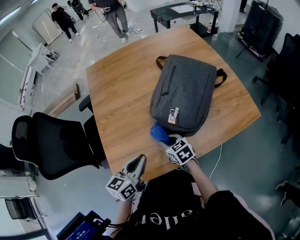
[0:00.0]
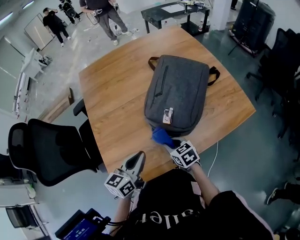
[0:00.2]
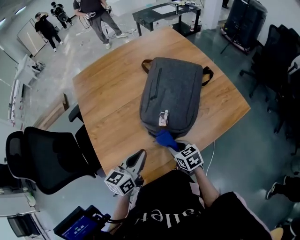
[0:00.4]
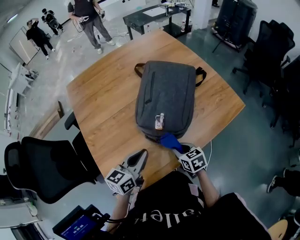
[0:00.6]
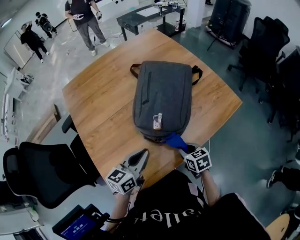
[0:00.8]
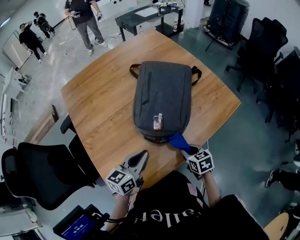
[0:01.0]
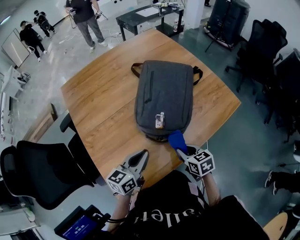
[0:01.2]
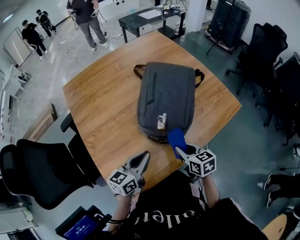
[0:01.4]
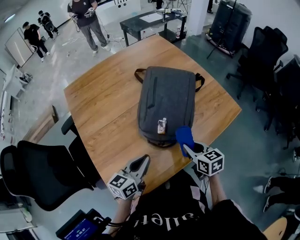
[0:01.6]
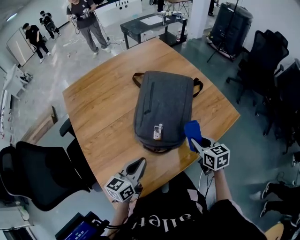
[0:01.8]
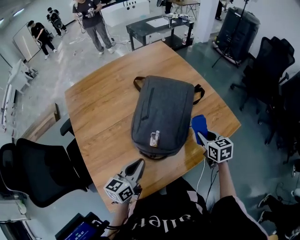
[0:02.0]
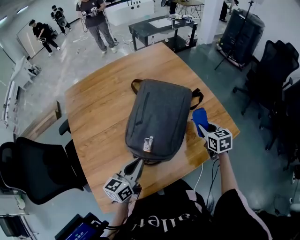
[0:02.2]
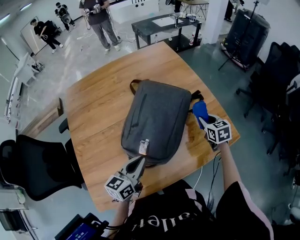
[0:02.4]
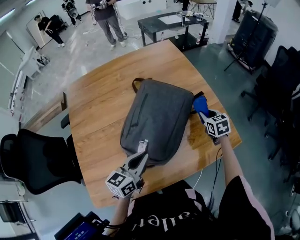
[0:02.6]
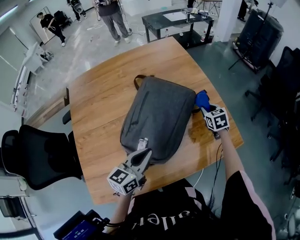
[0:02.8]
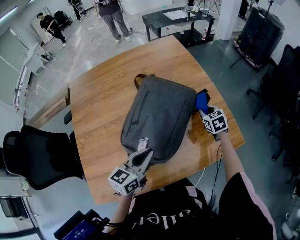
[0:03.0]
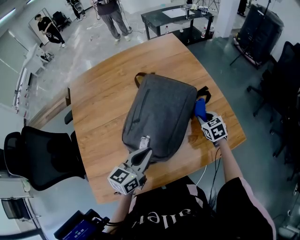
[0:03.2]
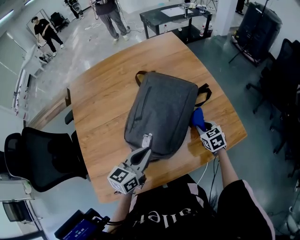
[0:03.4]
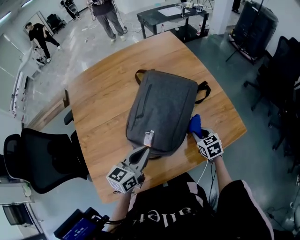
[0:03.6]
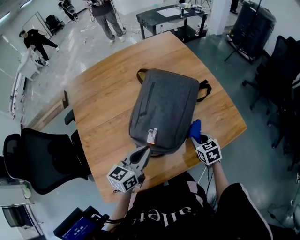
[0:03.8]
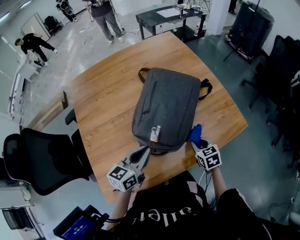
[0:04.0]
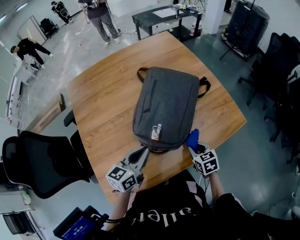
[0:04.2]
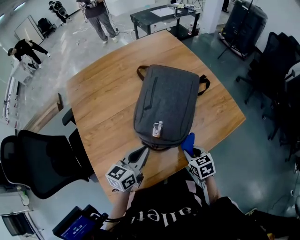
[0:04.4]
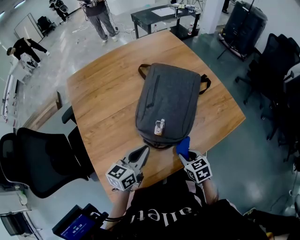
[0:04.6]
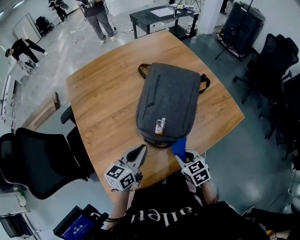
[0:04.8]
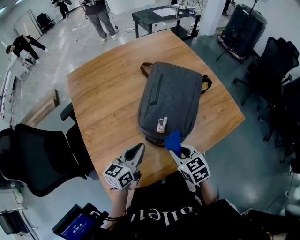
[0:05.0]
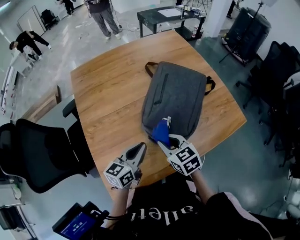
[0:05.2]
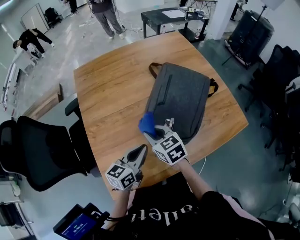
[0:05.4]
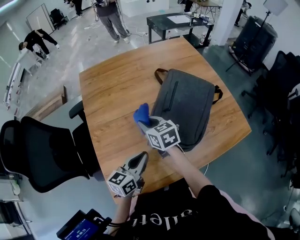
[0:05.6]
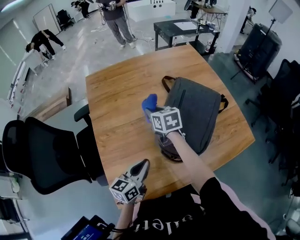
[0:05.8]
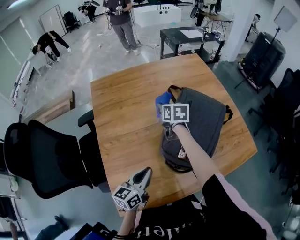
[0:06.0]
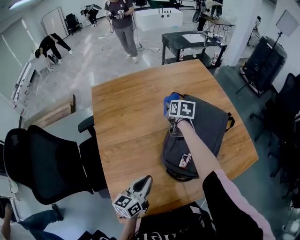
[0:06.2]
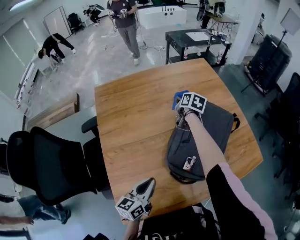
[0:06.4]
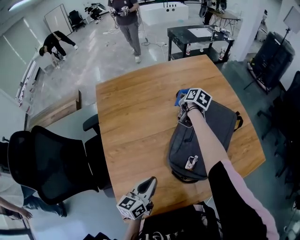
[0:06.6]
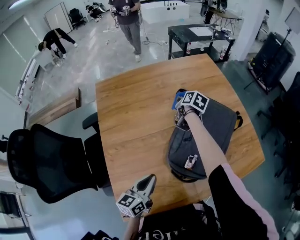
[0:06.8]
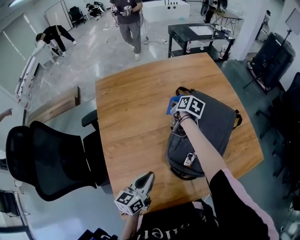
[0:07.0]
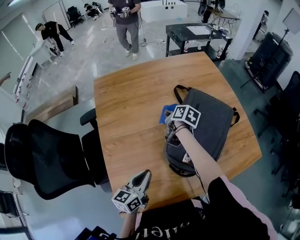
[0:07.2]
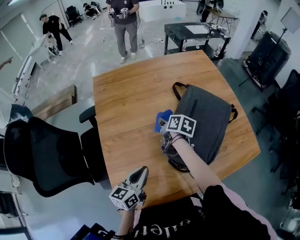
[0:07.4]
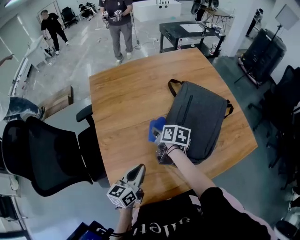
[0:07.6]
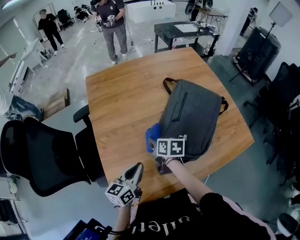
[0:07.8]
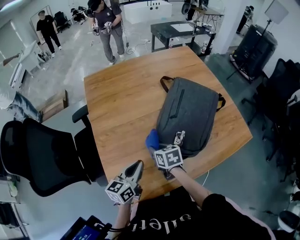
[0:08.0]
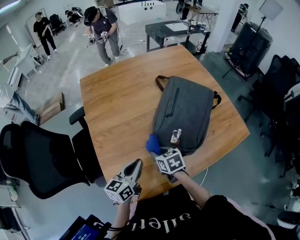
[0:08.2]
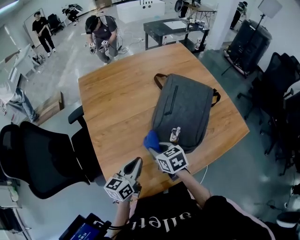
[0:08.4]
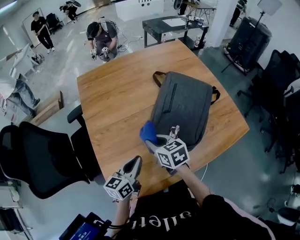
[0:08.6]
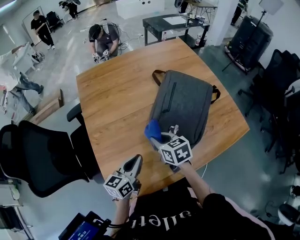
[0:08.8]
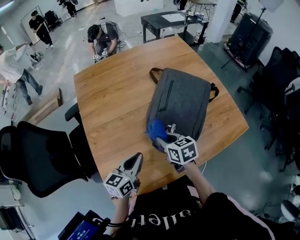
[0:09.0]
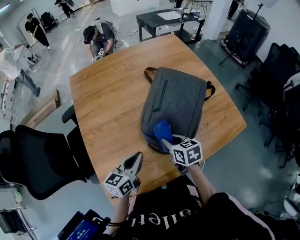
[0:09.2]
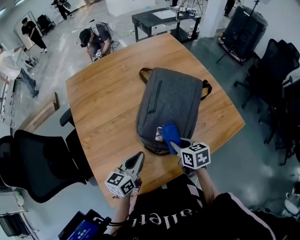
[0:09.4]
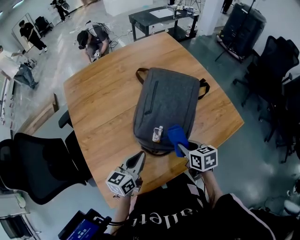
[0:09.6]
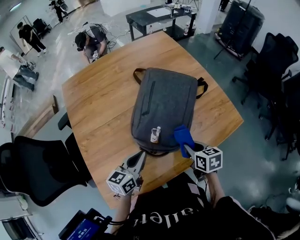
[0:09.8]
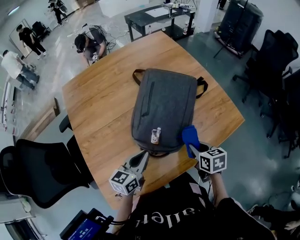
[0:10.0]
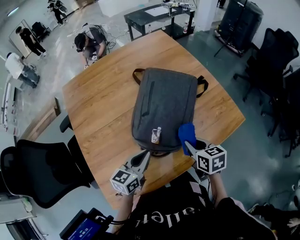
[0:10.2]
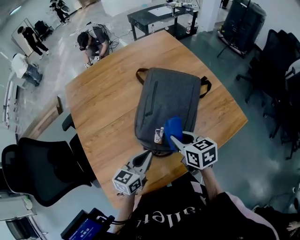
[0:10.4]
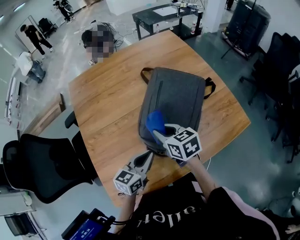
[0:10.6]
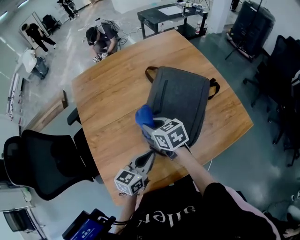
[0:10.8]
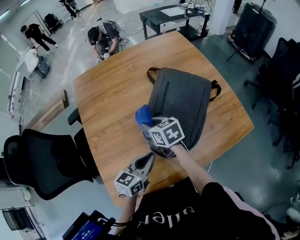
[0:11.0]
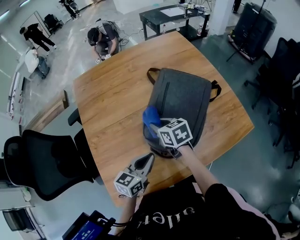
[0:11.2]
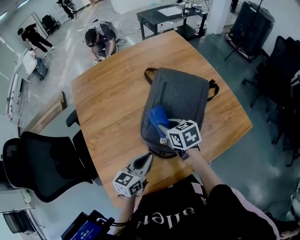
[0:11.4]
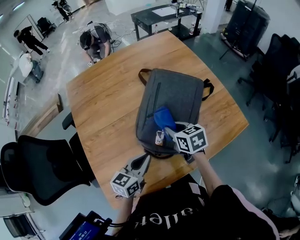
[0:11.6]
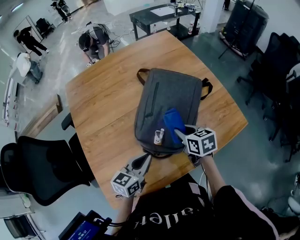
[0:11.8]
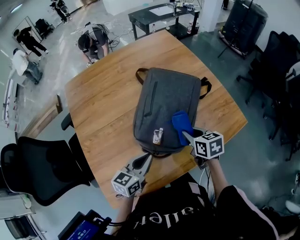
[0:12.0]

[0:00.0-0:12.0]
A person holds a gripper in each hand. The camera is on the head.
0:00.0 to 0:01.6: The right gripper swings left and right, approximately 15 cm each way, with 2 reversals, and rotates some 30 degrees. The left gripper is displaced forward by roughly 5 cm.
0:01.6 to 0:03.0: The right gripper shifts about 35 cm forward and to the right, and turns by approximately 30 degrees; the left gripper travels forward and to the right by about 20 cm.
0:03.0 to 0:04.4: The right gripper heads backward and to the left, covering roughly 35 cm. The left gripper is displaced to the left and backward by some 10 cm.
0:04.4 to 0:06.0: The right gripper heads forward and to the left, covering some 40 cm. The left gripper shifts roughly 10 cm to the left.
0:06.0 to 0:07.6: The right gripper heads backward and downward, covering some 15 cm, and turns by roughly 30 degrees.
0:07.6 to 0:09.0: The left gripper goes about 5 cm to the right; the right gripper moves backward and to the right, about 15 cm, and swivels roughly 30 degrees.
0:09.0 to 0:10.4: Both grippers travel together to the right, roughly 10 cm.
0:10.4 to 0:12.0: The right gripper reaches roughly 15 cm to the left, then returns.

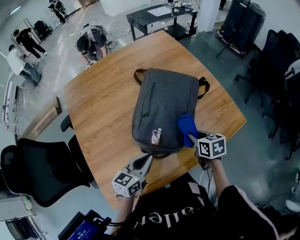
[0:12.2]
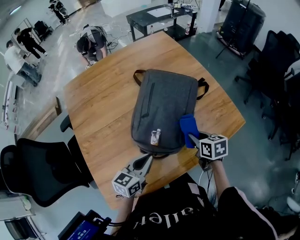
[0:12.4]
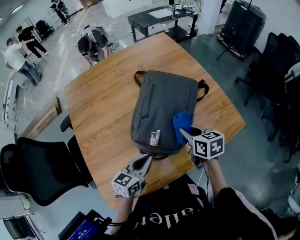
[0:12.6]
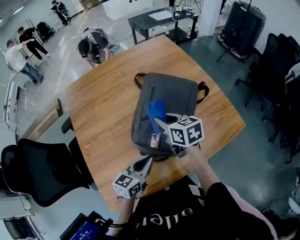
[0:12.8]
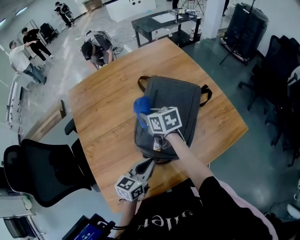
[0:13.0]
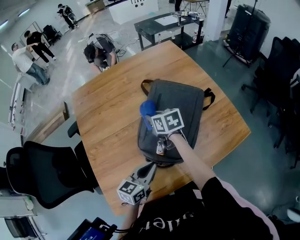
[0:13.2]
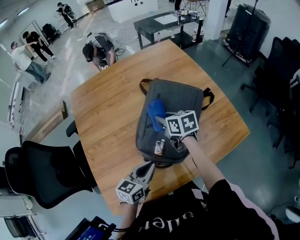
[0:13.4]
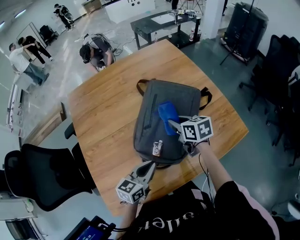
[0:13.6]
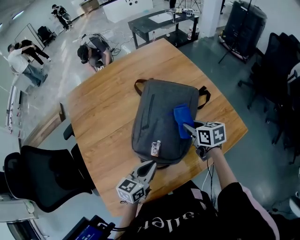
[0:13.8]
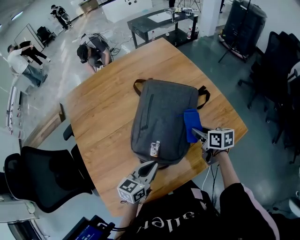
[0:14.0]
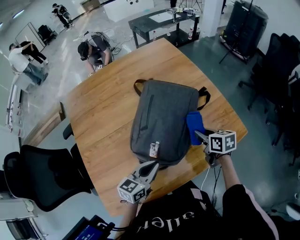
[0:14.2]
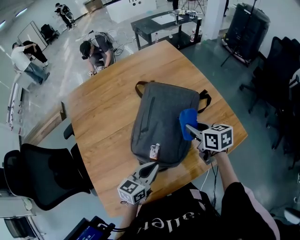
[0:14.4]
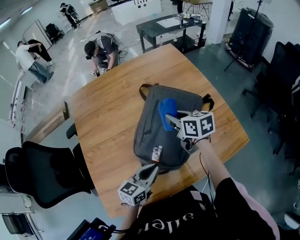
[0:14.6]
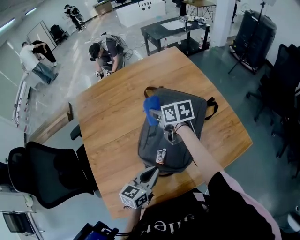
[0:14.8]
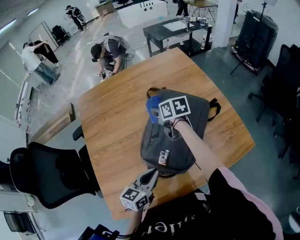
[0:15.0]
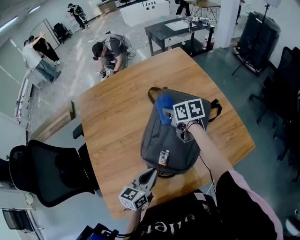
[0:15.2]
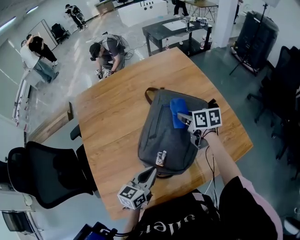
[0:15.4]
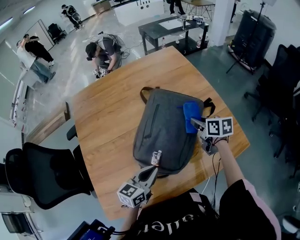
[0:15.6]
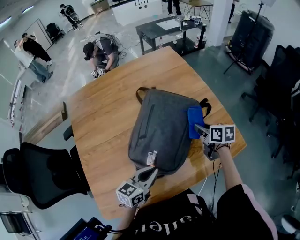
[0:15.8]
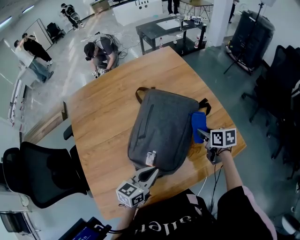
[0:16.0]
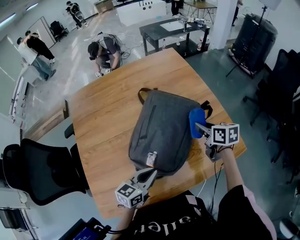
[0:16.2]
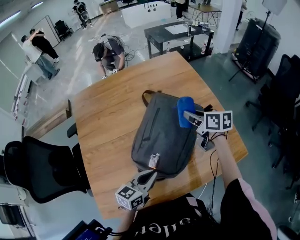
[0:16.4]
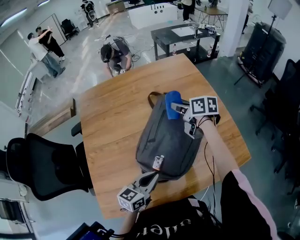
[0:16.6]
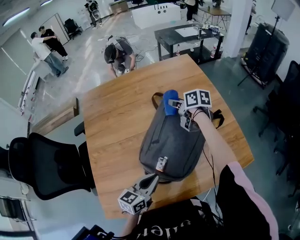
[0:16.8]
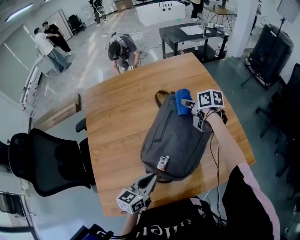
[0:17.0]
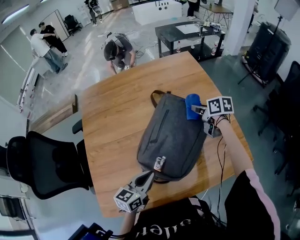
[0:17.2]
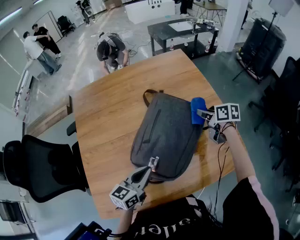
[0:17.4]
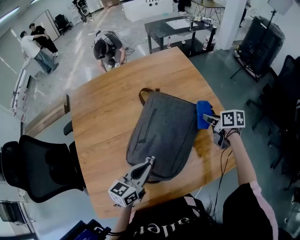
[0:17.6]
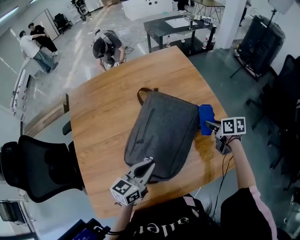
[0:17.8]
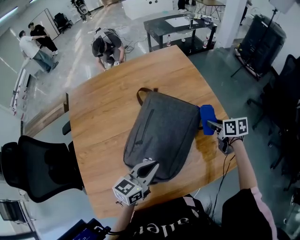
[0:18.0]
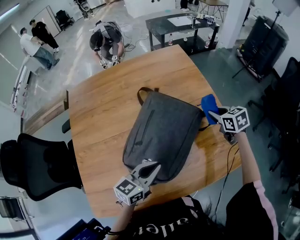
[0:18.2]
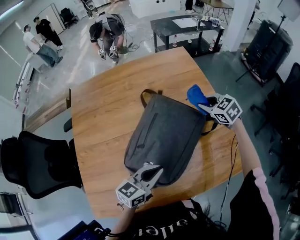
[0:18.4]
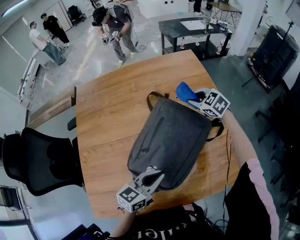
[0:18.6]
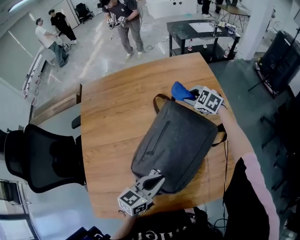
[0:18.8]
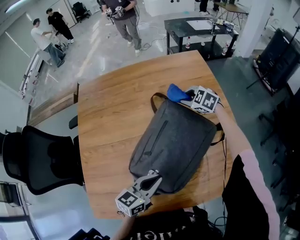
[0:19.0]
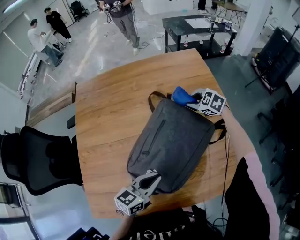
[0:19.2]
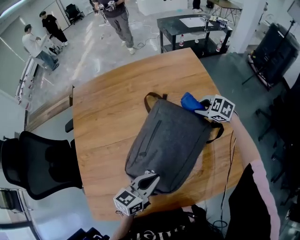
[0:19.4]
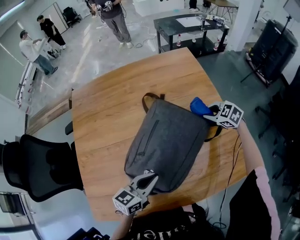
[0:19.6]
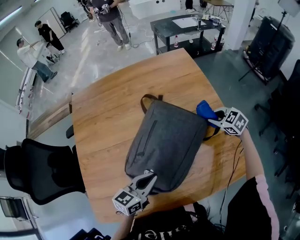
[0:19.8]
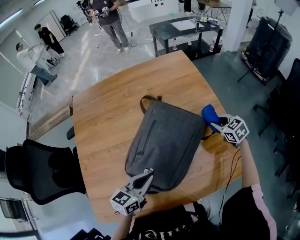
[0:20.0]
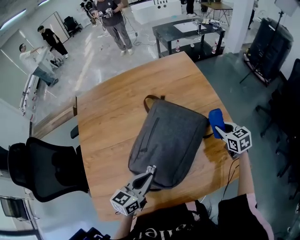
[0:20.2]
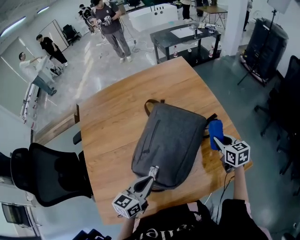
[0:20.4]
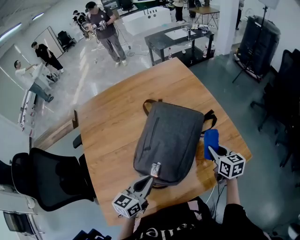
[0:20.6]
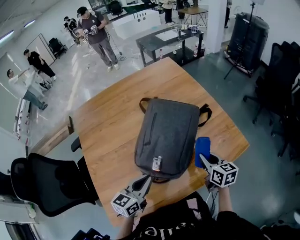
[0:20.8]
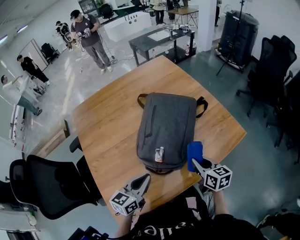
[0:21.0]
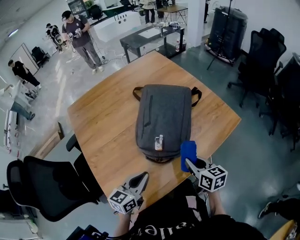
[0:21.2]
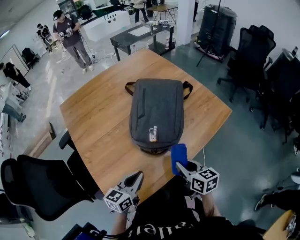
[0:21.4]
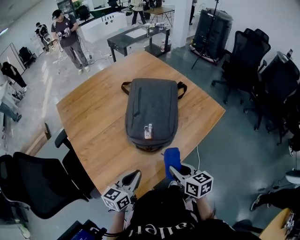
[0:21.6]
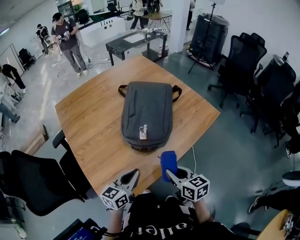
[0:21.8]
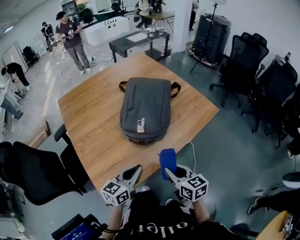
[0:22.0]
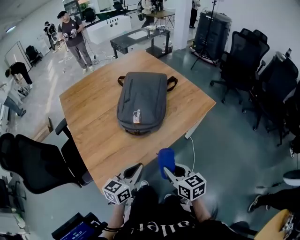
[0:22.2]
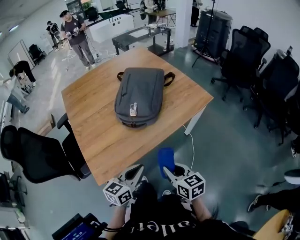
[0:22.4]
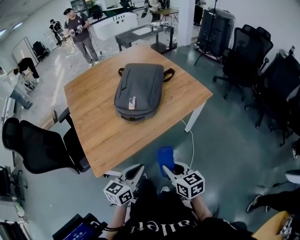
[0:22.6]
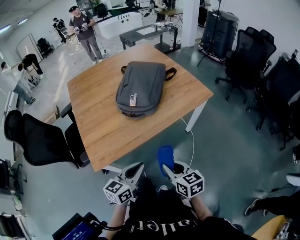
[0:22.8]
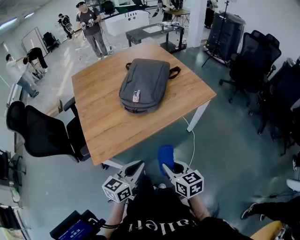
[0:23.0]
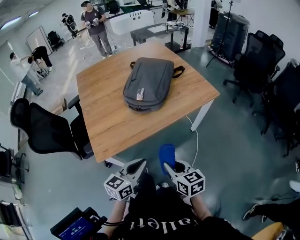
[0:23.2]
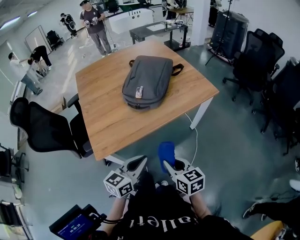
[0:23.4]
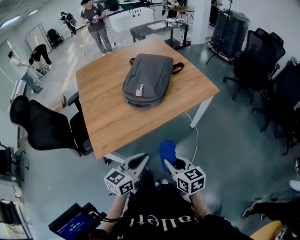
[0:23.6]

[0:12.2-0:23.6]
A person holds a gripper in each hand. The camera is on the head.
0:12.2 to 0:13.6: The right gripper goes about 15 cm forward, to the left and upward.
0:13.6 to 0:15.0: The right gripper heads forward and to the left, covering approximately 15 cm.
0:15.0 to 0:16.4: The right gripper travels to the right by roughly 15 cm.
0:16.4 to 0:17.8: The right gripper is displaced to the right and downward by approximately 20 cm; the left gripper is displaced forward by some 5 cm.
0:17.8 to 0:19.4: The right gripper shifts approximately 20 cm forward and to the left, and rolls counterclockwise, seen from behind, by approximately 70 degrees.
0:19.4 to 0:20.8: The left gripper moves backward and to the left, approximately 10 cm, while the right gripper heads backward, covering about 35 cm, and twists roughly 60 degrees clockwise, seen from behind.
0:20.8 to 0:22.2: The right gripper heads backward, covering approximately 35 cm; the left gripper moves backward, about 25 cm.
0:22.2 to 0:23.6: Both grippers move backward and to the right, approximately 15 cm.
